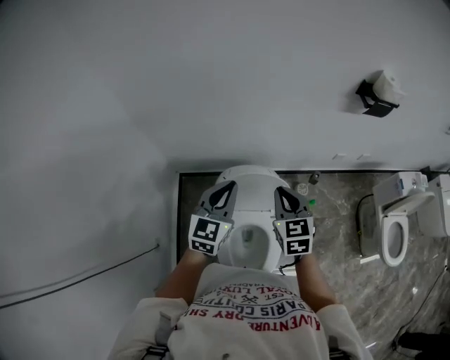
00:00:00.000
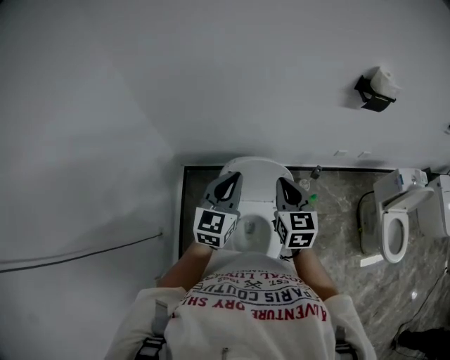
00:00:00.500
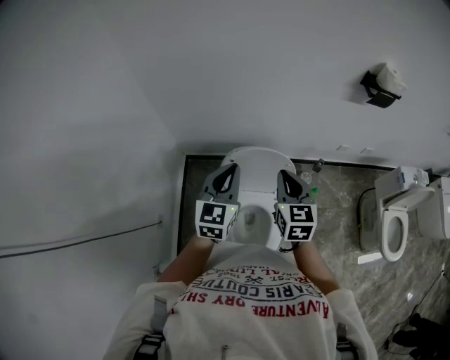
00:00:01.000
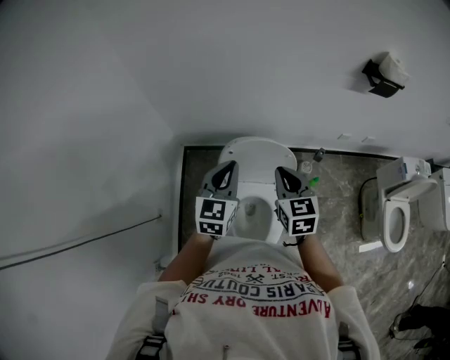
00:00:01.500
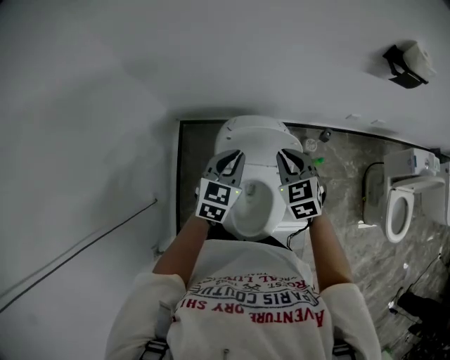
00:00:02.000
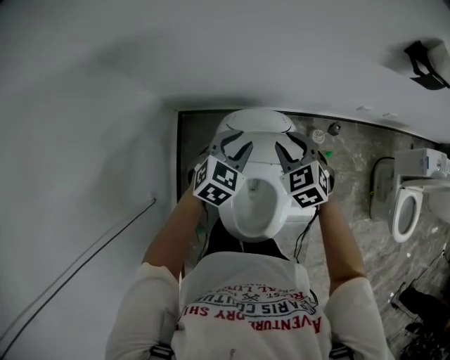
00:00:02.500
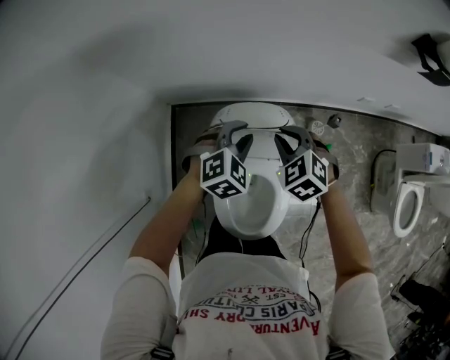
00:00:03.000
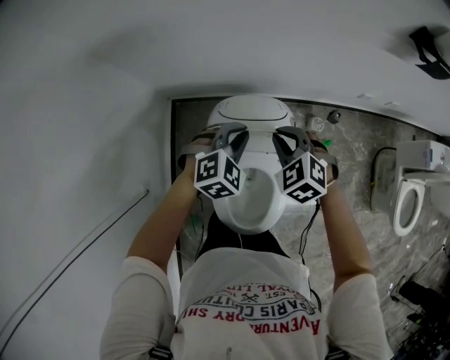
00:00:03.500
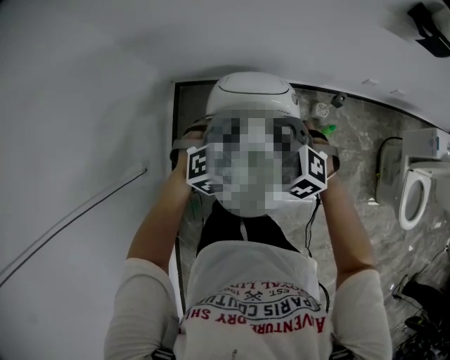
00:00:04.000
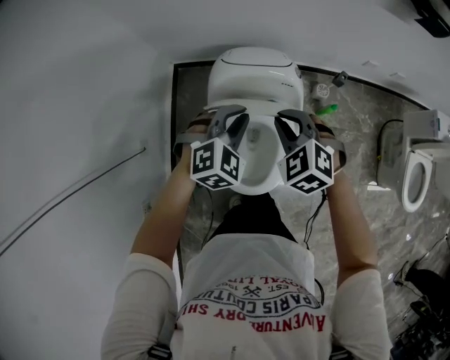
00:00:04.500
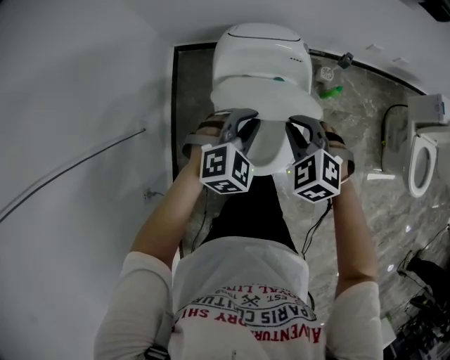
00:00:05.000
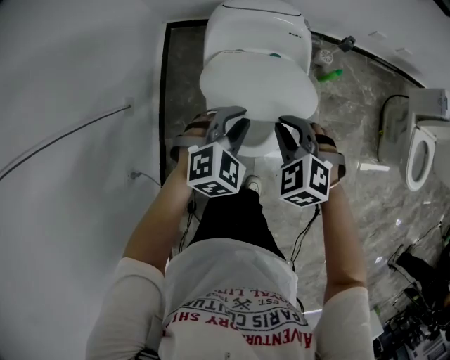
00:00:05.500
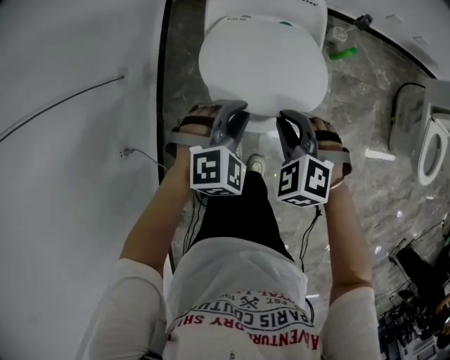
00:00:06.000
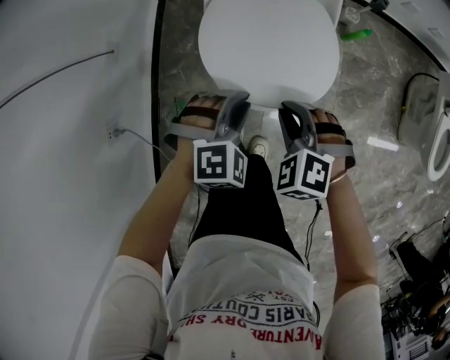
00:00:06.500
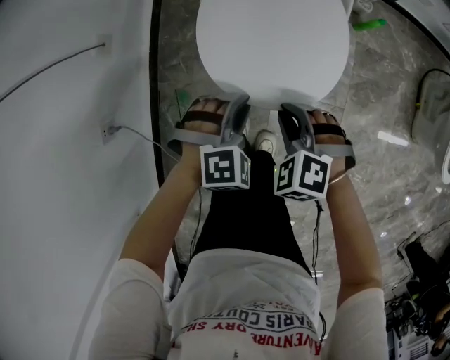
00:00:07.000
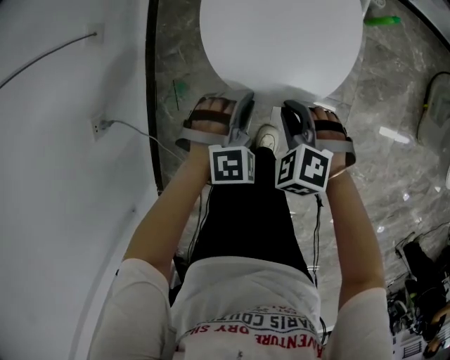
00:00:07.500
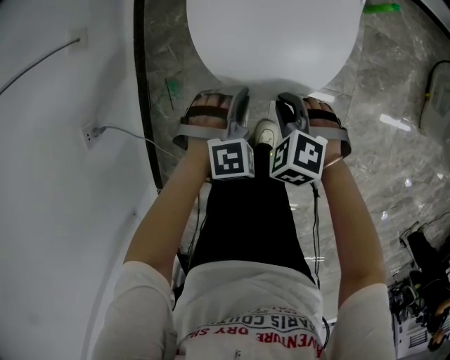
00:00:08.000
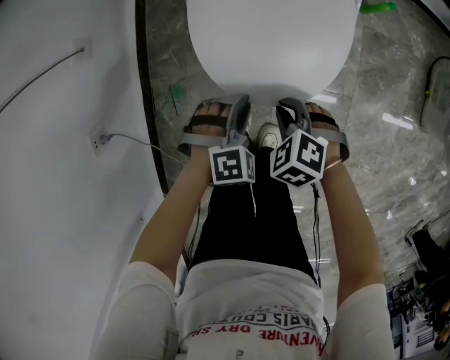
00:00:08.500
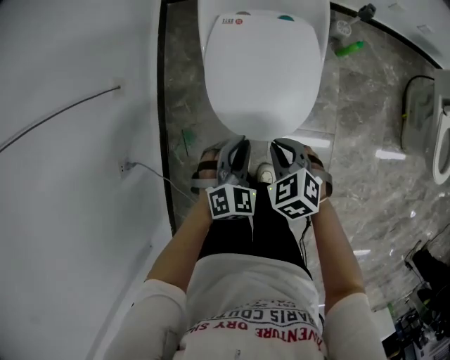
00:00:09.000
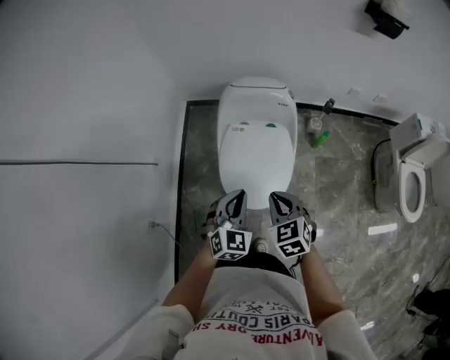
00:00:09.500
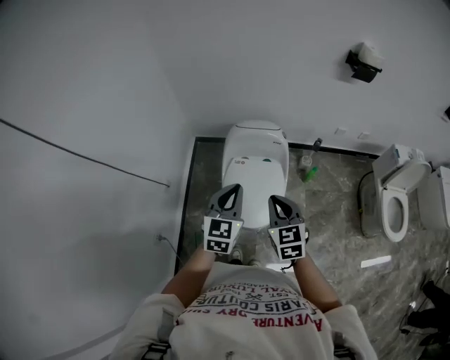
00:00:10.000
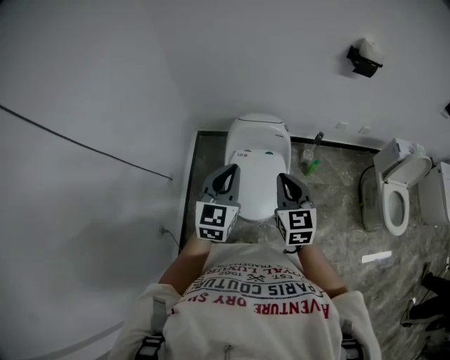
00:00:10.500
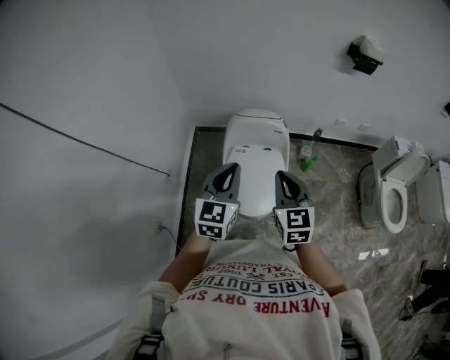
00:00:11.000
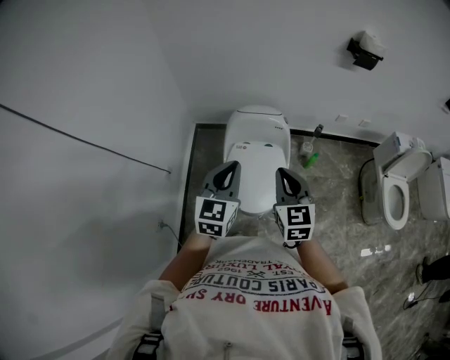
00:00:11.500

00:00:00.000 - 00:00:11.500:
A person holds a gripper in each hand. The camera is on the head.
00:00:00.000 - 00:00:02.000: Both grippers travel together downward, some 10 cm. The right gripper turns by roughly 20 degrees.
00:00:02.000 - 00:00:04.000: Both grippers travel together downward, roughly 10 cm. The left gripper moves some 10 cm forward and comes back, and rotates roughly 40 degrees; the right gripper reaches roughly 10 cm forward, then returns, and rotates some 30 degrees.
00:00:04.000 - 00:00:06.000: Both grippers travel together backward and downward, some 35 cm.
00:00:06.000 - 00:00:07.500: Both grippers travel together downward and backward, roughly 25 cm.
00:00:07.500 - 00:00:09.500: Both grippers travel together upward, some 35 cm. The left gripper turns by about 40 degrees. The right gripper changes its angle by about 40 degrees.
00:00:09.500 - 00:00:11.500: Both grippers travel together upward, about 25 cm. The right gripper rotates about 30 degrees. The left gripper swivels approximately 30 degrees.

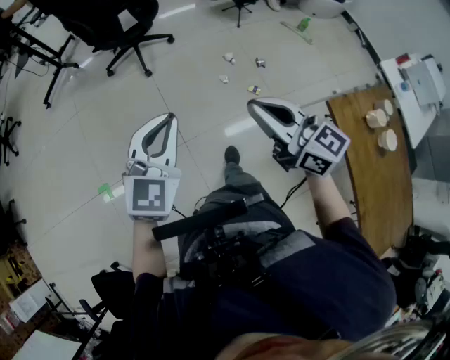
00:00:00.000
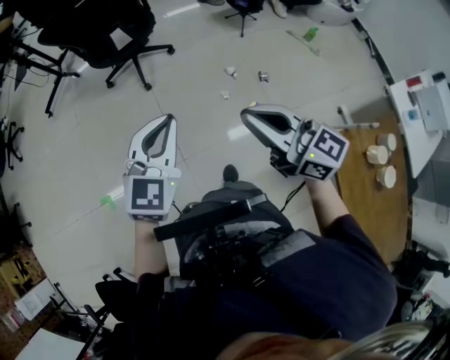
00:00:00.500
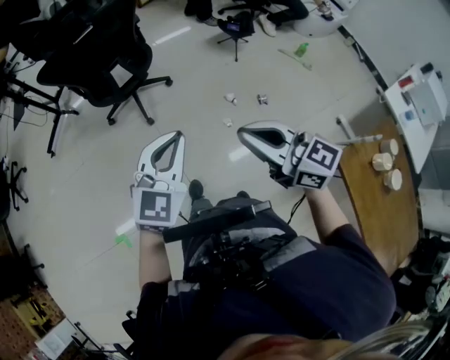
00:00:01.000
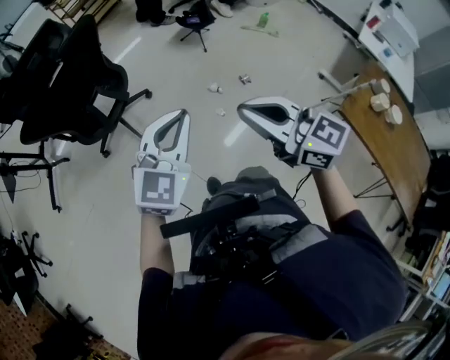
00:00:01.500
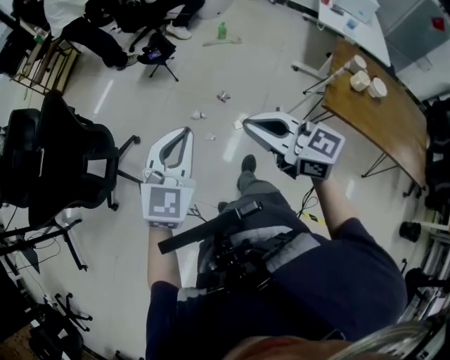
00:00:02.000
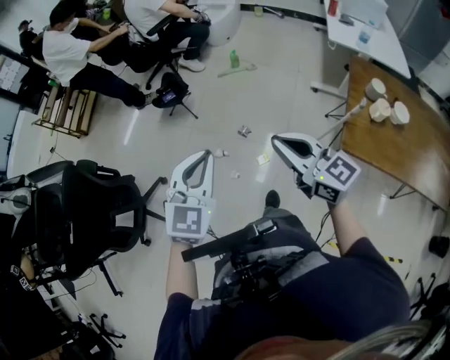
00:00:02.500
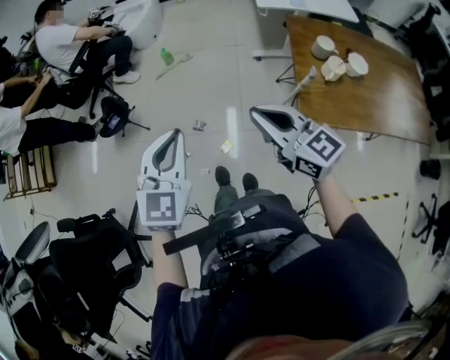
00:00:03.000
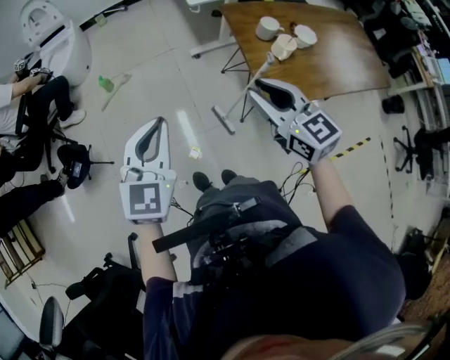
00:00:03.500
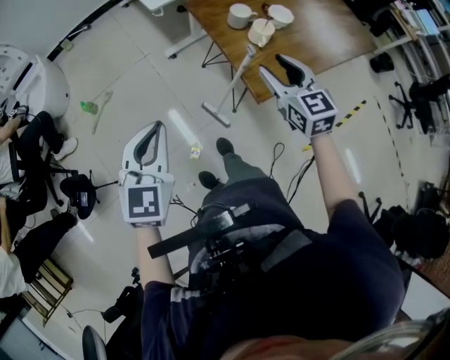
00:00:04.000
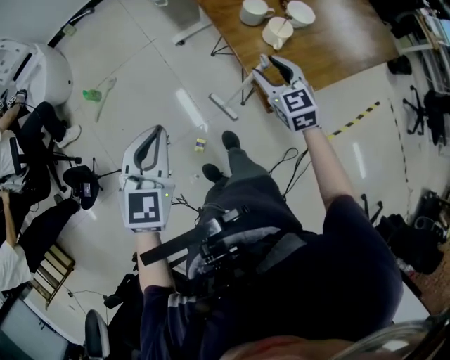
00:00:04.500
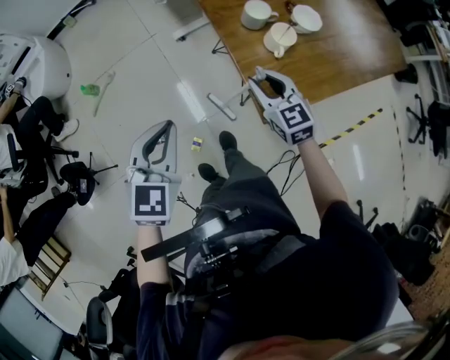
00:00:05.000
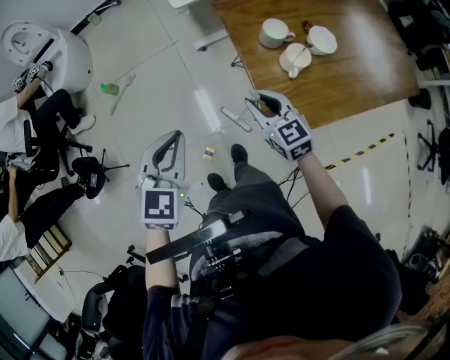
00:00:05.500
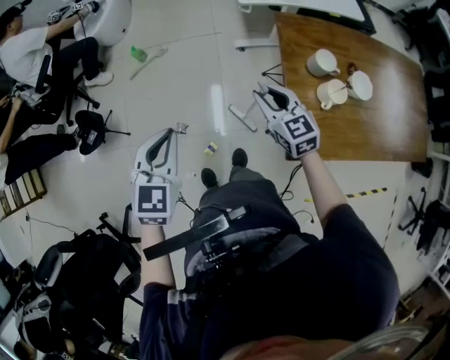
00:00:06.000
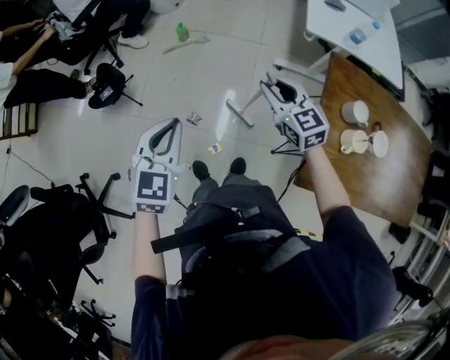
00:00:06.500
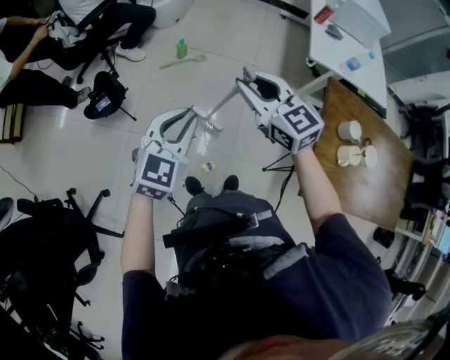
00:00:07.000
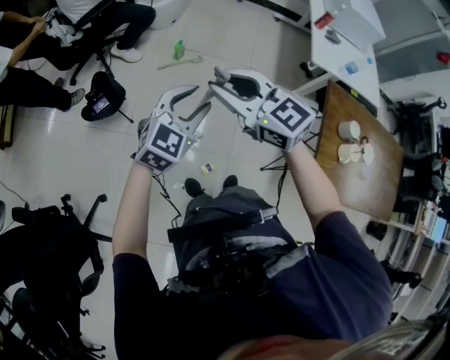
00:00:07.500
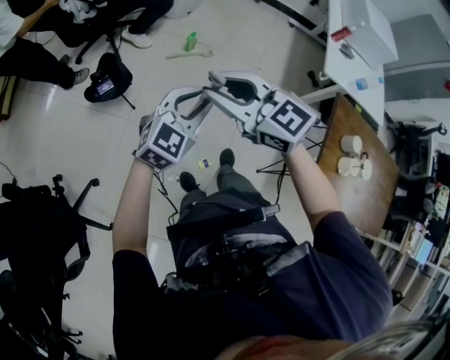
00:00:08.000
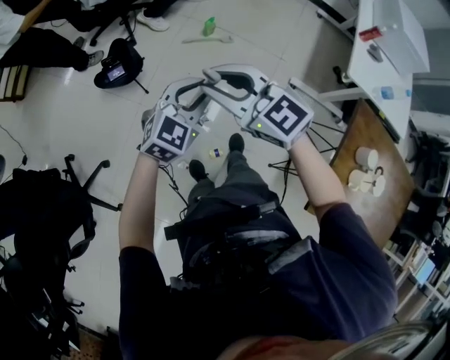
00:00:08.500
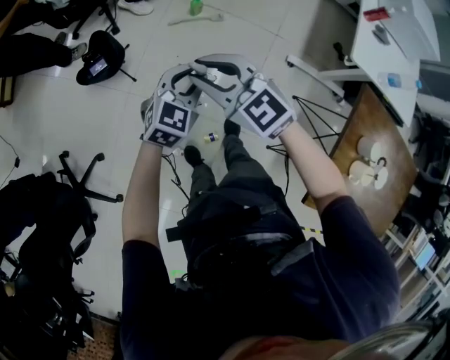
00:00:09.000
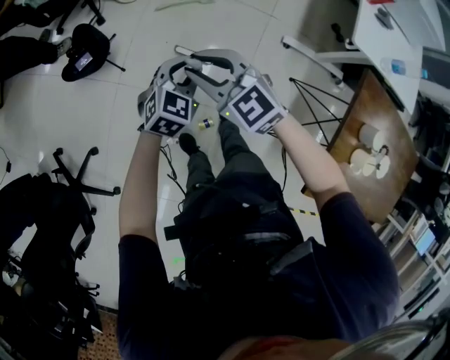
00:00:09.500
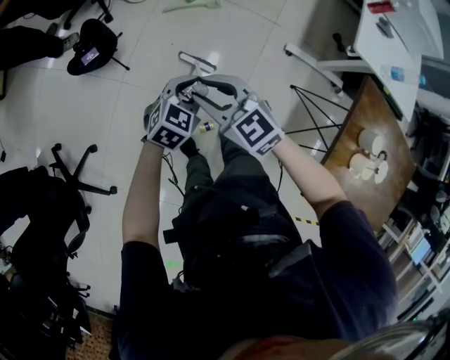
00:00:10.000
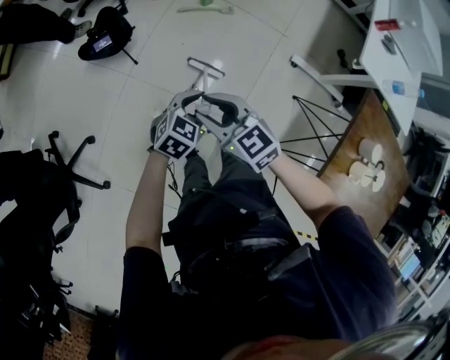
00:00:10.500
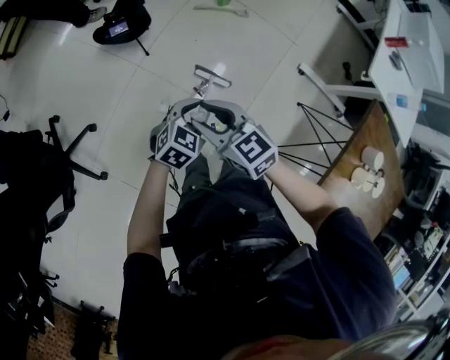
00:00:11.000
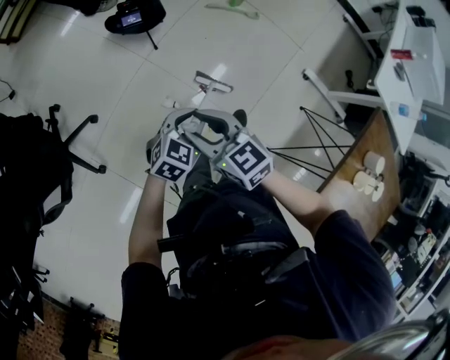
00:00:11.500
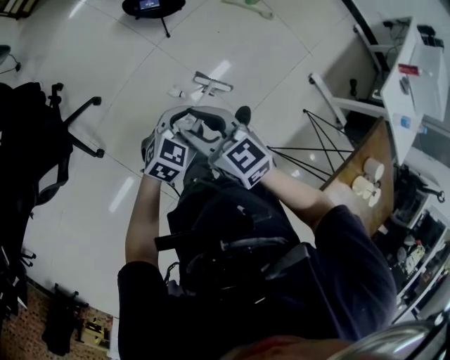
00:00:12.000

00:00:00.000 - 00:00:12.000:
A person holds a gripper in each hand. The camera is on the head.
00:00:00.000 - 00:00:02.000: The left gripper ends up approximately 40 cm from where it was, and changes its angle by some 40 degrees; the right gripper shifts by some 30 cm, and turns by roughly 30 degrees.
00:00:02.000 - 00:00:04.000: The pair of grippers is taken some 50 cm. The left gripper turns by about 50 degrees. Meanwhile the right gripper turns by some 90 degrees, and opens up.
00:00:04.000 - 00:00:06.000: The right gripper ends up roughly 20 cm from where it was, turns by some 40 degrees, and closes. The left gripper changes place by some 10 cm, and rotates roughly 30 degrees.
00:00:06.000 - 00:00:08.000: The right gripper shifts some 50 cm to the left, and changes its angle by about 50 degrees. Meanwhile the left gripper heads to the left and forward, covering some 25 cm, and opens.
00:00:08.000 - 00:00:10.000: The two grippers go approximately 20 cm downward. The left gripper rotates some 20 degrees.
00:00:10.000 - 00:00:12.000: The grippers both shift to the left and backward by some 30 cm. The left gripper rotates roughly 20 degrees. The right gripper changes its angle by some 20 degrees.

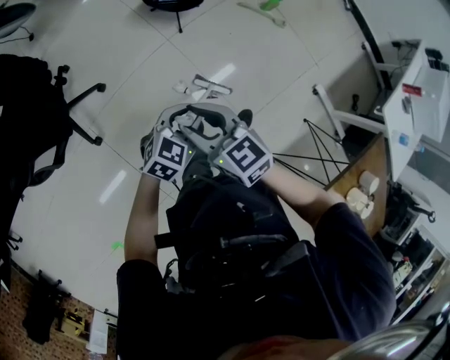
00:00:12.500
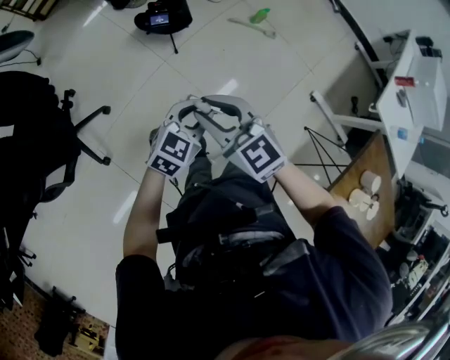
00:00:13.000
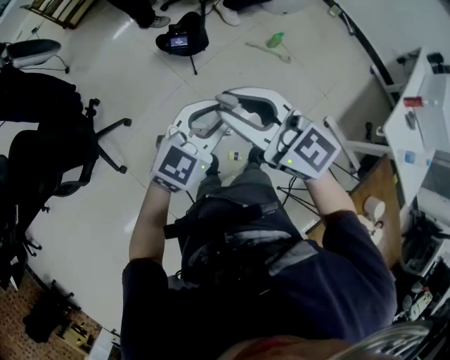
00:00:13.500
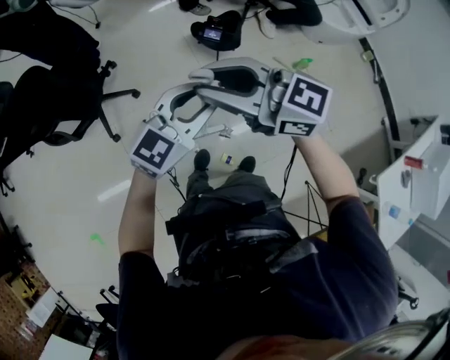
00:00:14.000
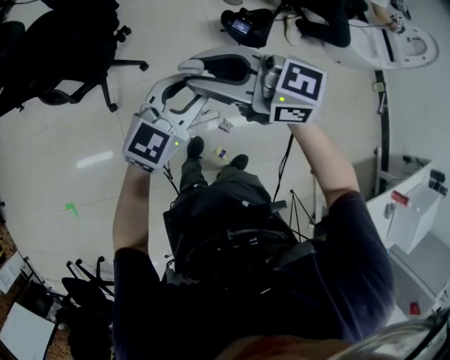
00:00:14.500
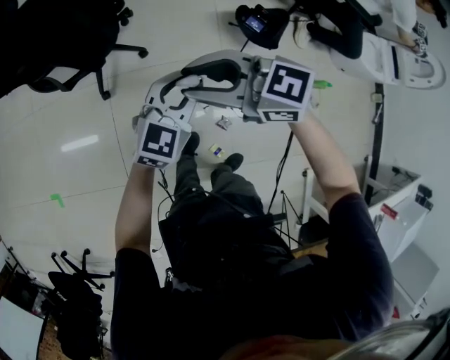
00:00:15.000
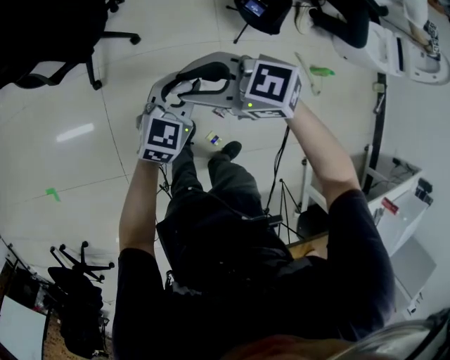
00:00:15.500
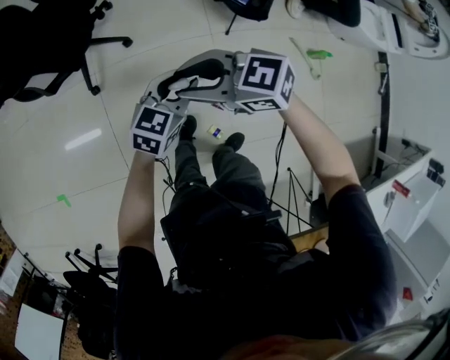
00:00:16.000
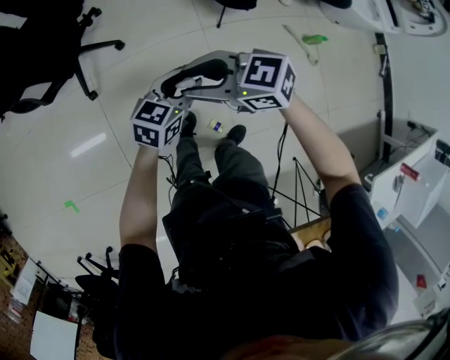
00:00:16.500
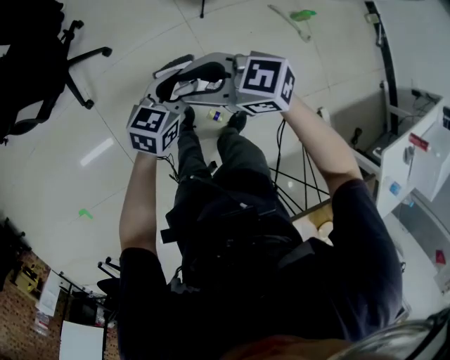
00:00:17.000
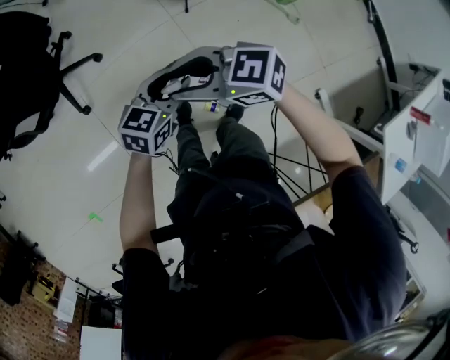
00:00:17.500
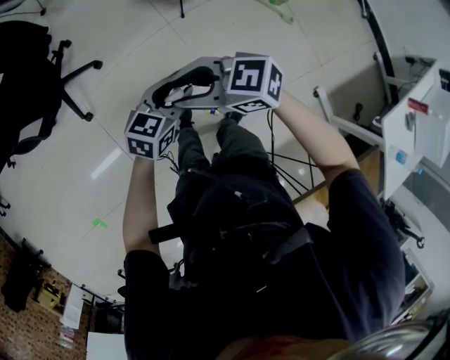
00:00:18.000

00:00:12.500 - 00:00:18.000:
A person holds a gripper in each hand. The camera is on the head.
00:00:12.500 - 00:00:14.500: The grippers both shift upward by approximately 20 cm. The right gripper swivels about 60 degrees; the left gripper swivels roughly 40 degrees.
00:00:14.500 - 00:00:16.000: Both grippers travel together downward, roughly 20 cm. The right gripper turns by about 20 degrees, while the left gripper rotates approximately 20 degrees.
00:00:16.000 - 00:00:18.000: The right gripper changes place by about 15 cm, while the left gripper moves roughly 15 cm.
